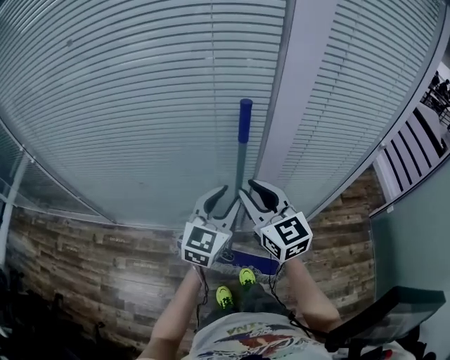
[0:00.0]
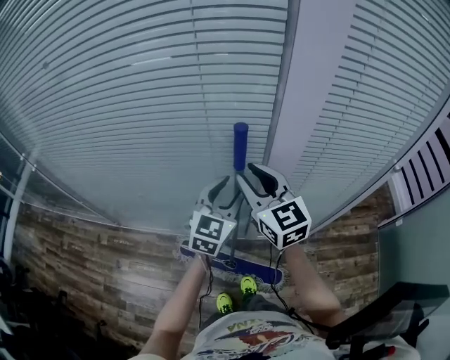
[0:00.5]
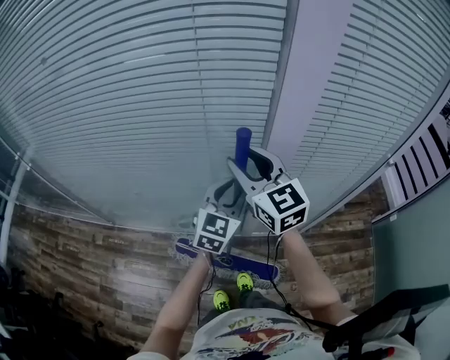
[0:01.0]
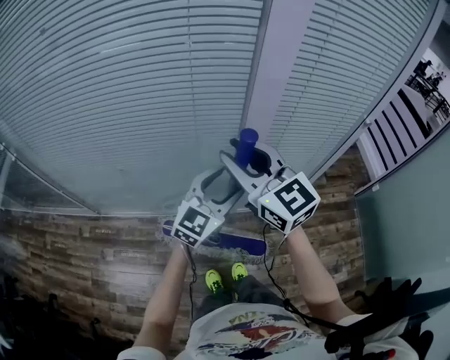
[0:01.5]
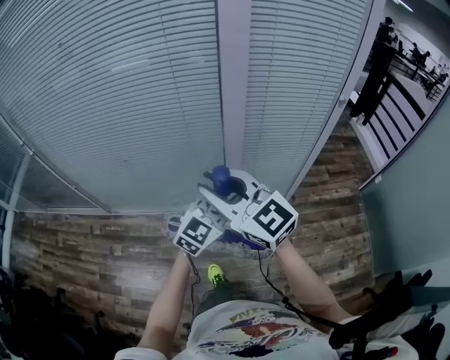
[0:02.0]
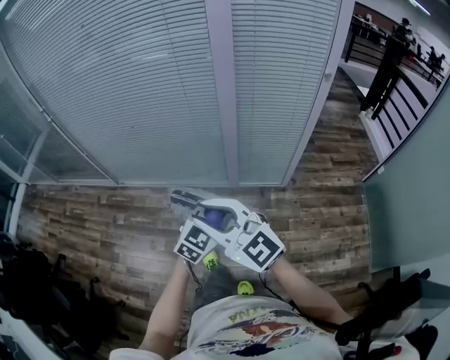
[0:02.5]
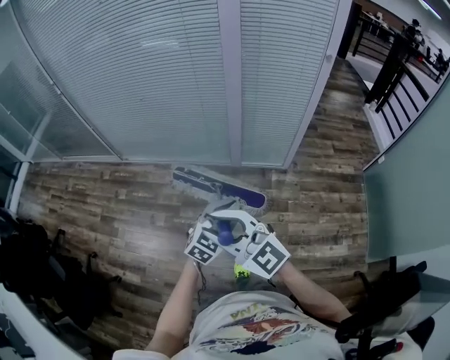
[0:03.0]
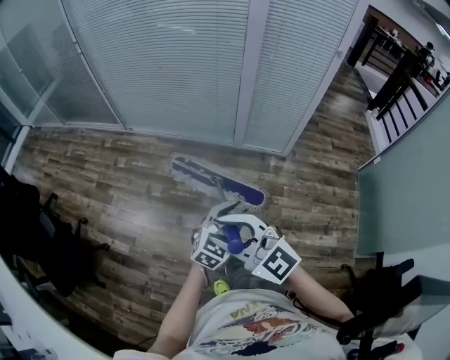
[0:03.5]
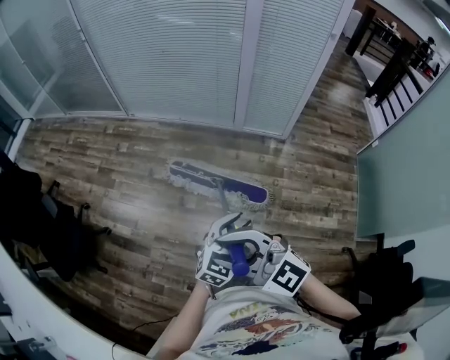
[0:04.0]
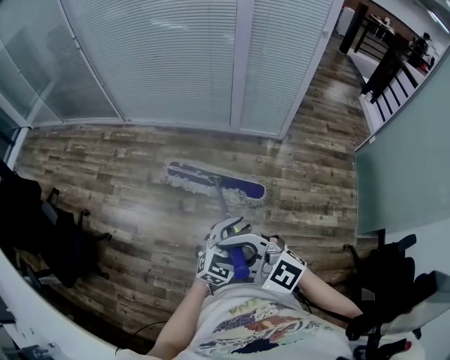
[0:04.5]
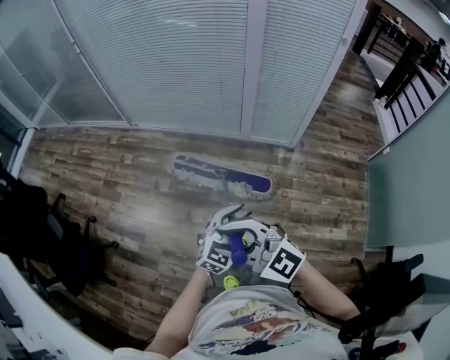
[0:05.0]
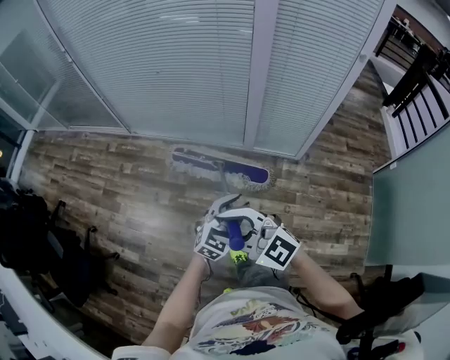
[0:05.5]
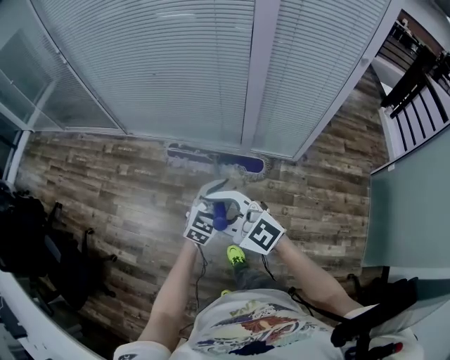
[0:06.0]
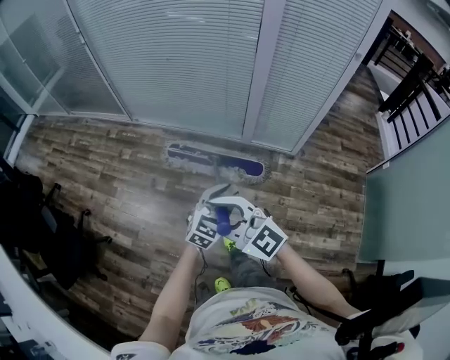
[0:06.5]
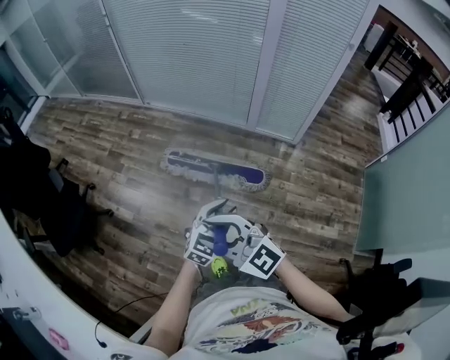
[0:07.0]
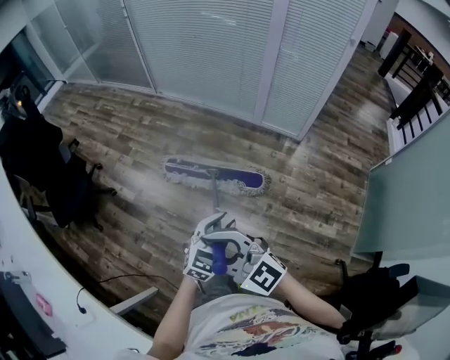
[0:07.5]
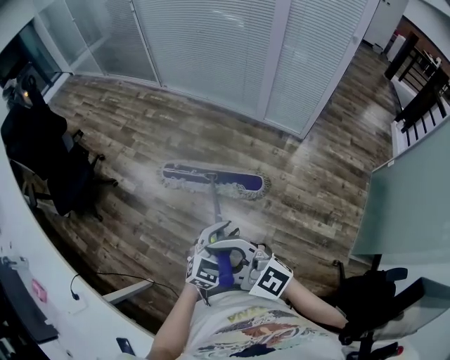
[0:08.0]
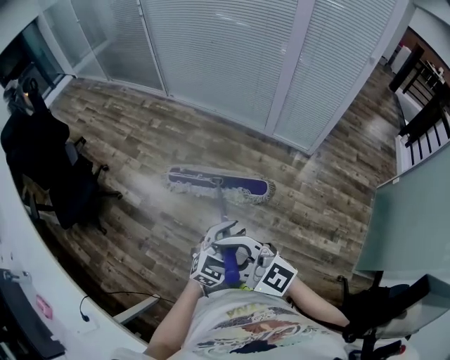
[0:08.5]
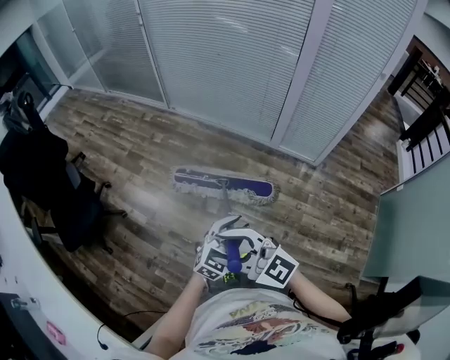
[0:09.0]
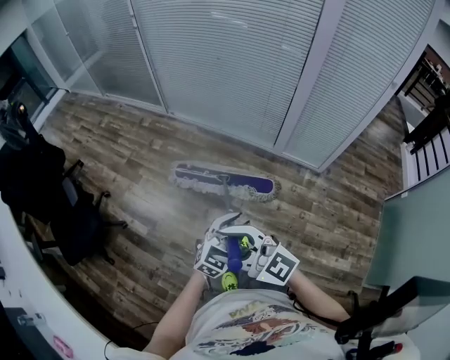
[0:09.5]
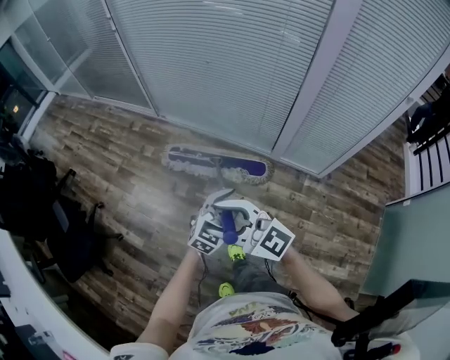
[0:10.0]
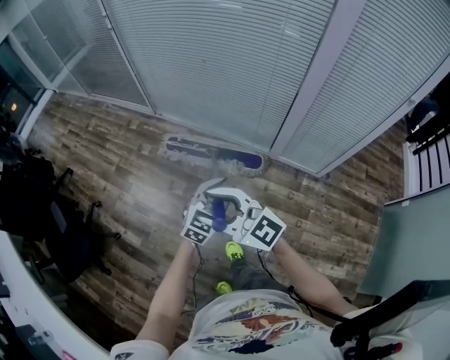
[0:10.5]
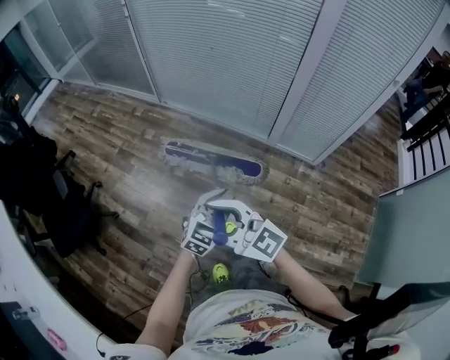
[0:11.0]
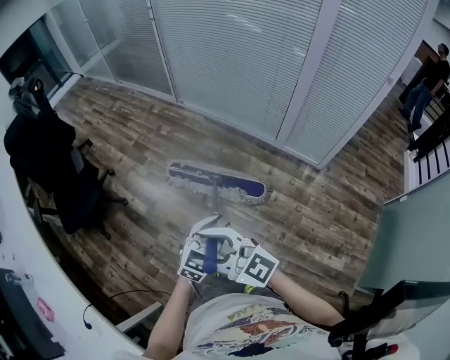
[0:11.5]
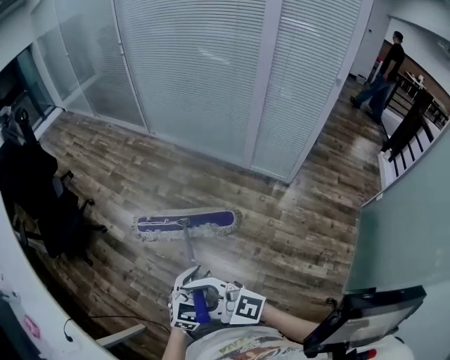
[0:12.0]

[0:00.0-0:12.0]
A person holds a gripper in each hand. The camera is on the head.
0:00.0 to 0:02.0: The right gripper moves backward, about 20 cm, and swivels roughly 20 degrees; the left gripper moves backward and to the right, about 25 cm, changes its angle by about 20 degrees, and opens and closes again.
0:02.0 to 0:04.0: Both grippers are carried backward, some 70 cm. The right gripper swivels approximately 30 degrees; the left gripper turns by approximately 30 degrees.
0:04.0 to 0:06.0: Both grippers are carried forward, about 40 cm.
0:06.0 to 0:08.0: Both grippers are carried backward, approximately 60 cm. The right gripper changes its angle by some 20 degrees.
0:08.0 to 0:10.0: The pair of grippers is taken forward, roughly 60 cm.
0:10.0 to 0:12.0: The two grippers travel together, backward, approximately 60 cm.

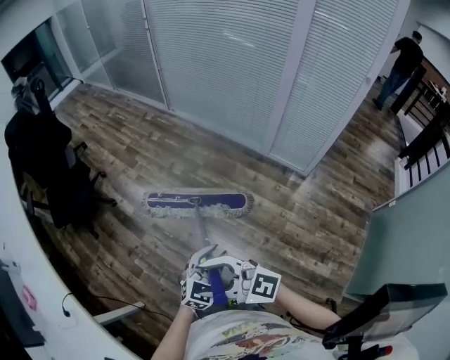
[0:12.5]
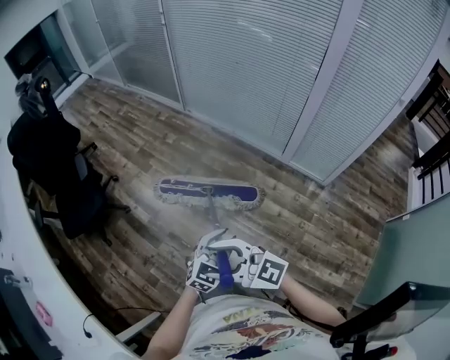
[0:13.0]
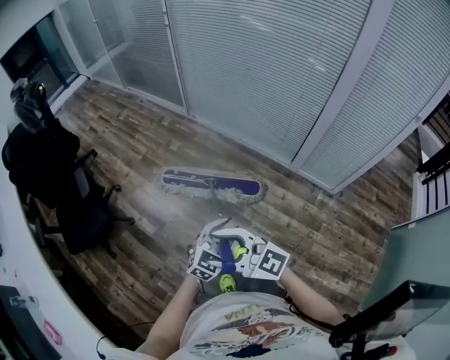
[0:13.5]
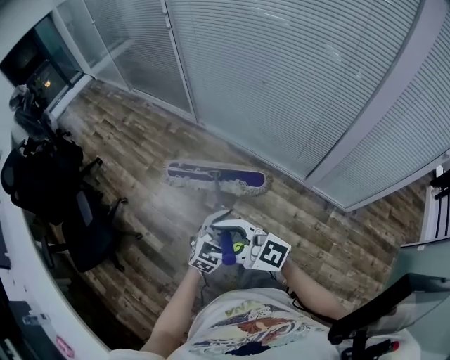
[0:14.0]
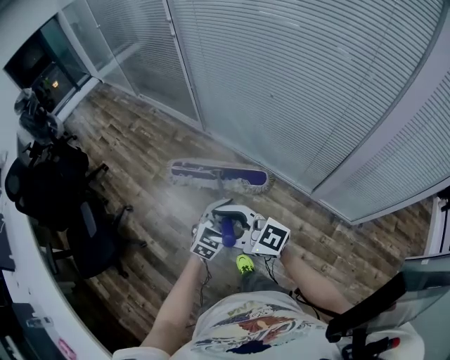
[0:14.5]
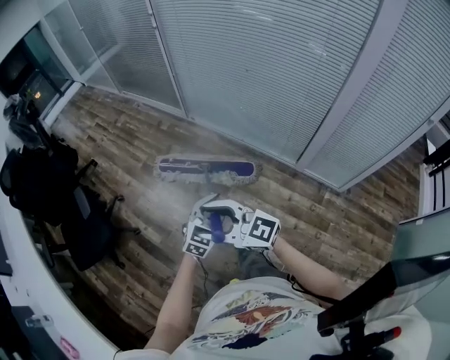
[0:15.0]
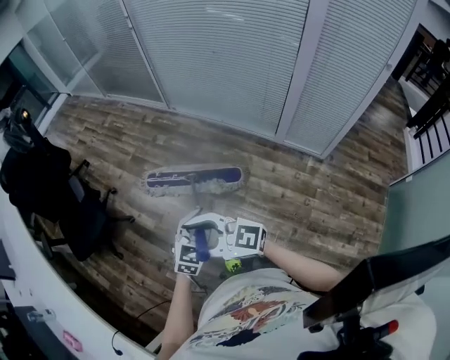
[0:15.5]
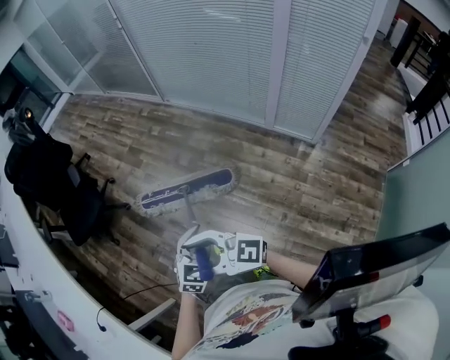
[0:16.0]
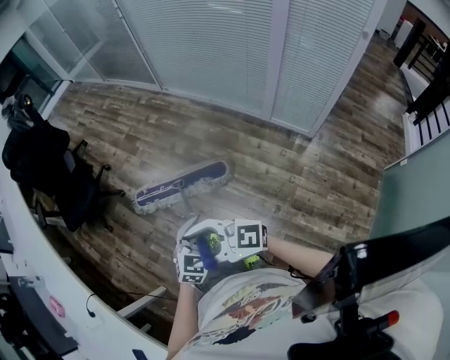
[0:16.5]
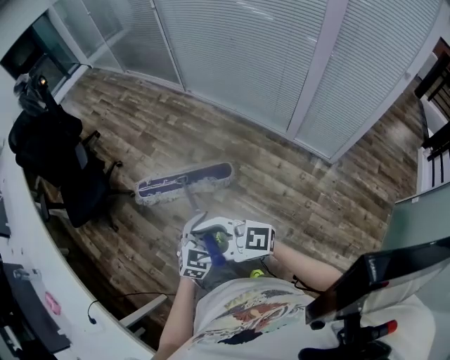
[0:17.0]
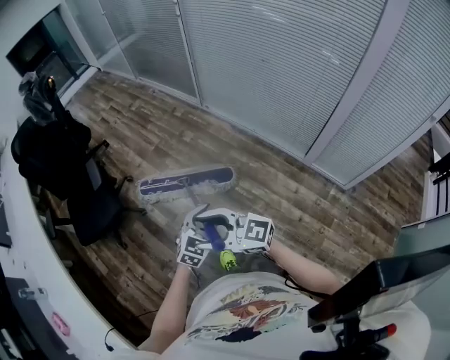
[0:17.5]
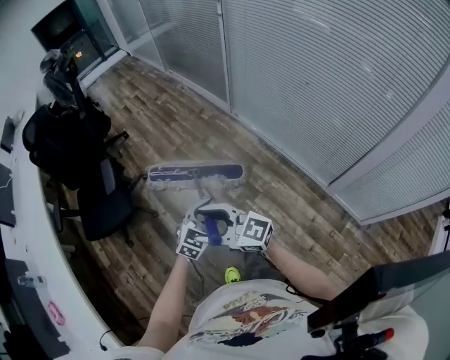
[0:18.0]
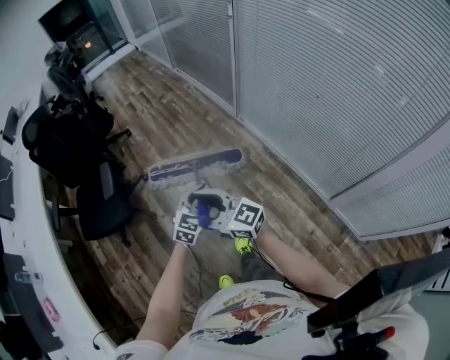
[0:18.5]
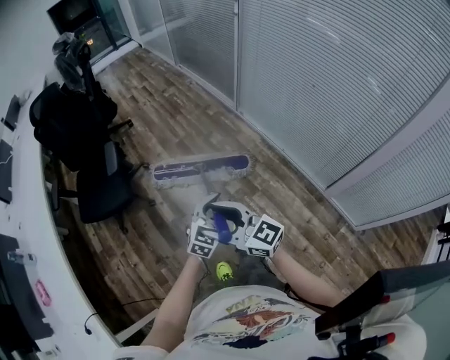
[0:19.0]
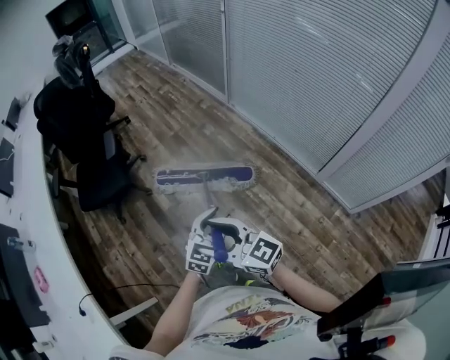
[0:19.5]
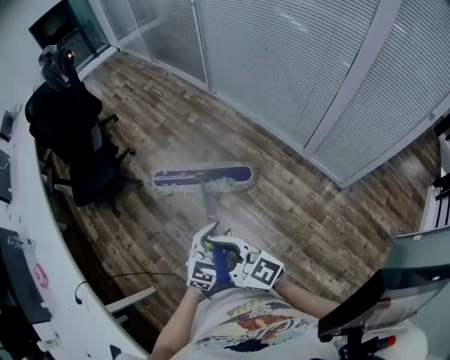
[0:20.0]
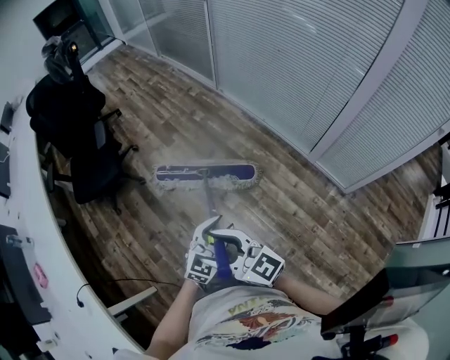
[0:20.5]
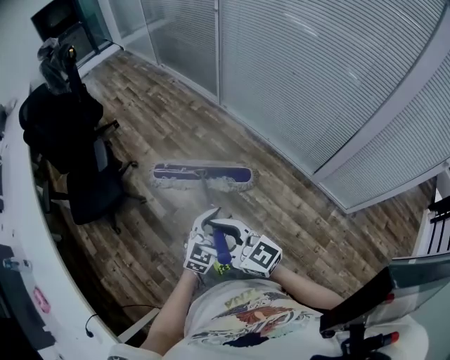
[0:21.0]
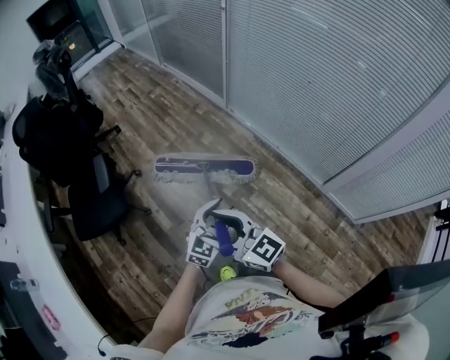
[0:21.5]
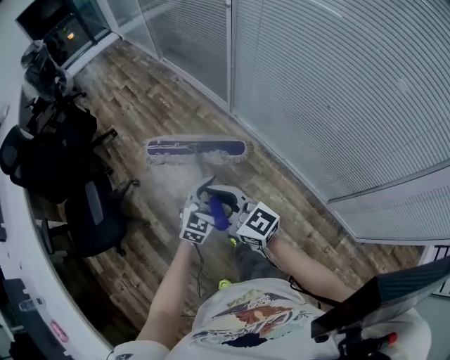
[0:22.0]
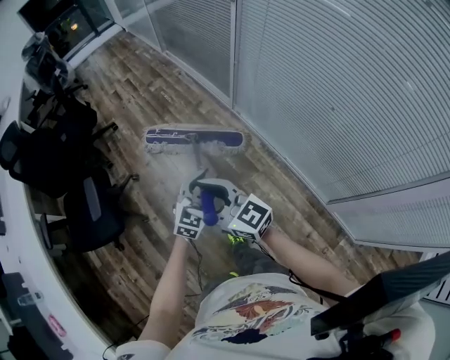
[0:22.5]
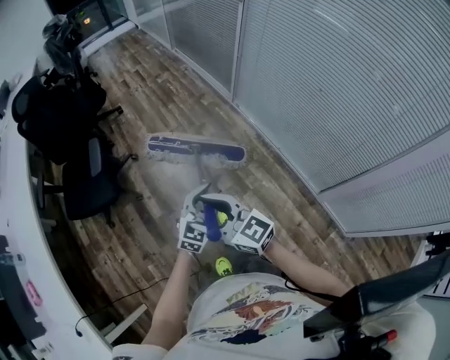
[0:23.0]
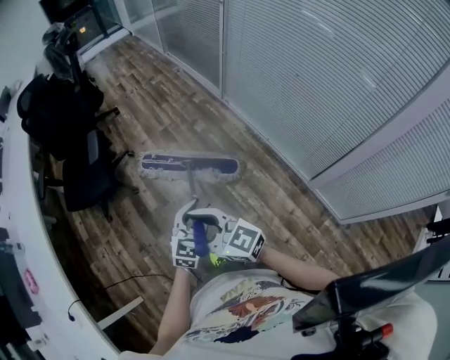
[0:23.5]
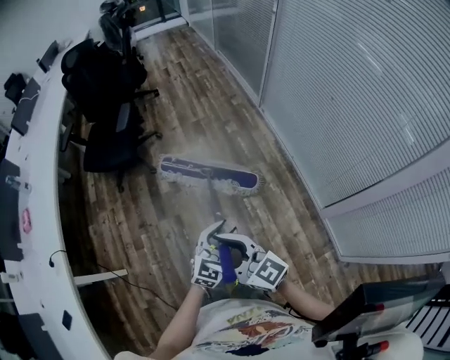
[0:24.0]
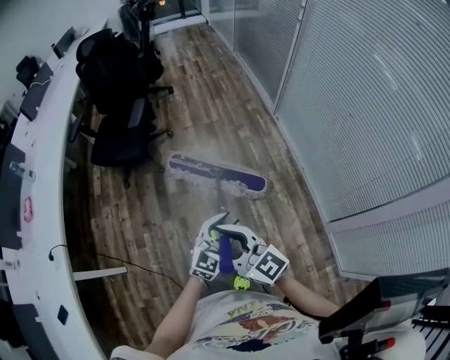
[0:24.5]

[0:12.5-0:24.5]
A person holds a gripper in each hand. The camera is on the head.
0:12.5 to 0:14.5: The two grippers travel together, forward, roughly 80 cm.
0:14.5 to 0:16.5: The pair of grippers is taken backward, approximately 70 cm.
0:16.5 to 0:18.5: Both grippers are carried forward, roughly 70 cm.
0:18.5 to 0:20.5: The pair of grippers is taken backward, about 50 cm.
0:20.5 to 0:22.5: The pair of grippers is taken forward, about 70 cm.
0:22.5 to 0:24.5: Both grippers are carried backward, approximately 50 cm. The right gripper rotates about 20 degrees.

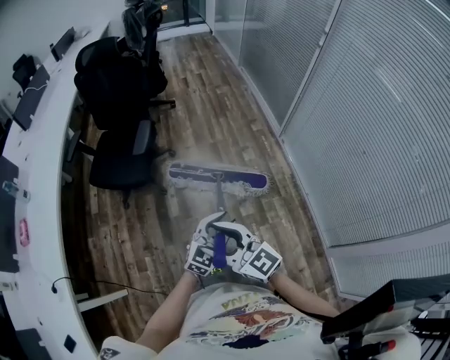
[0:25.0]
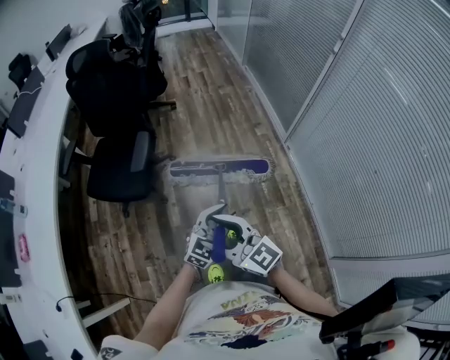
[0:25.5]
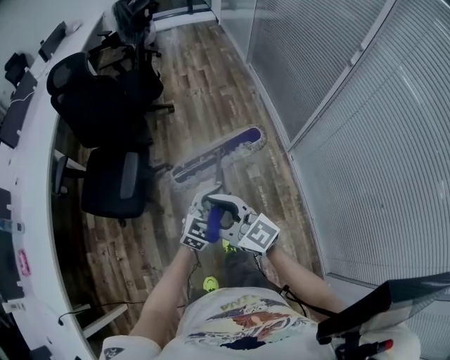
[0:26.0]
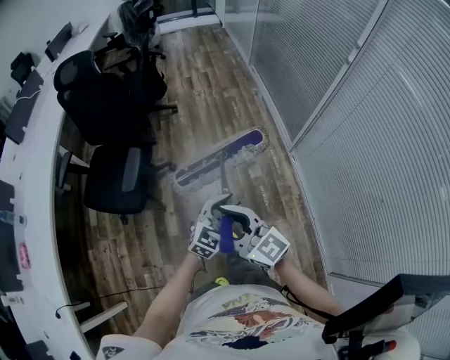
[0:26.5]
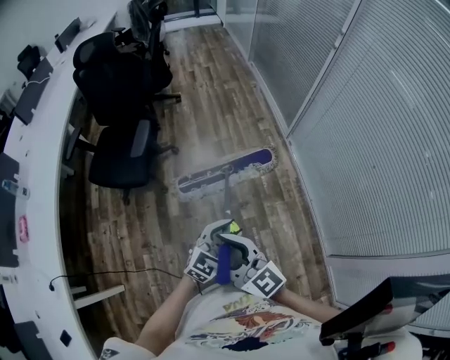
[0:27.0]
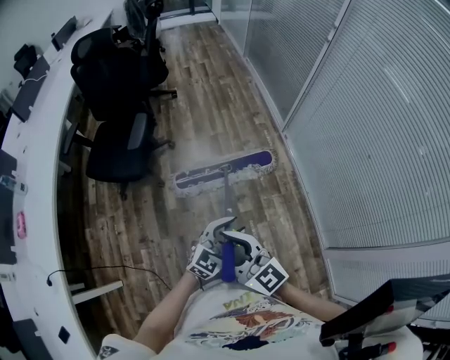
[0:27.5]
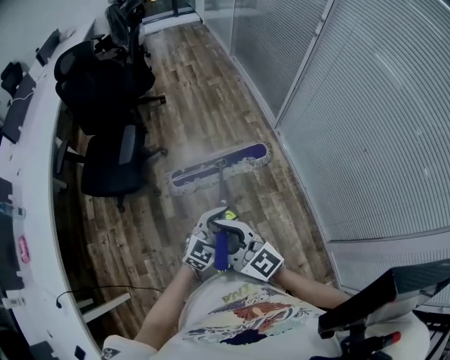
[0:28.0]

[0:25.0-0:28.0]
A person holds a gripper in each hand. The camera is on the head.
0:25.0 to 0:26.5: Both grippers move forward and to the right, roughly 35 cm.
0:26.5 to 0:28.0: Both grippers move backward, about 25 cm.
